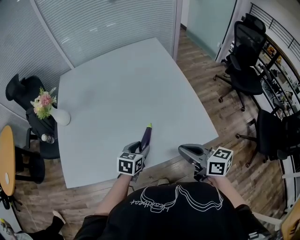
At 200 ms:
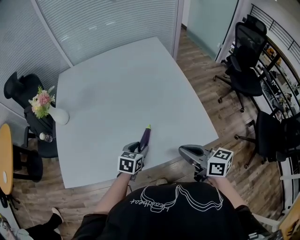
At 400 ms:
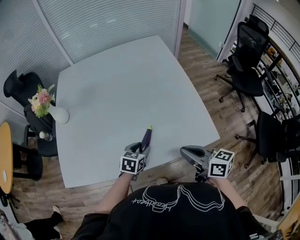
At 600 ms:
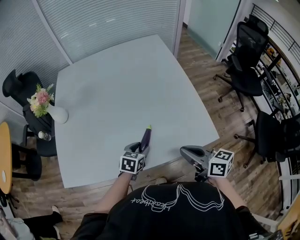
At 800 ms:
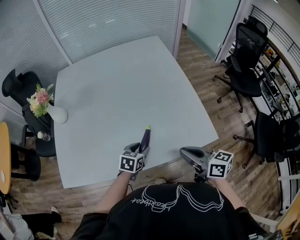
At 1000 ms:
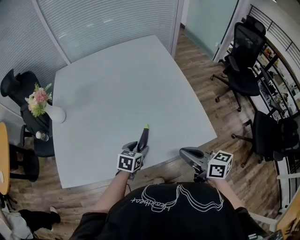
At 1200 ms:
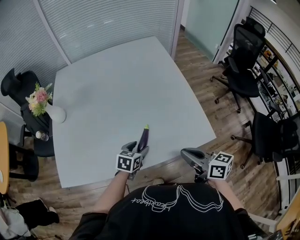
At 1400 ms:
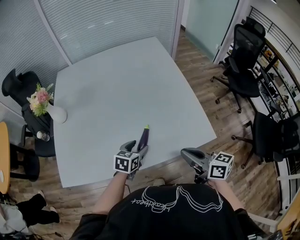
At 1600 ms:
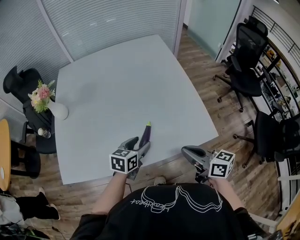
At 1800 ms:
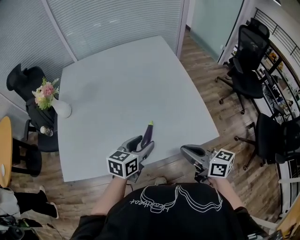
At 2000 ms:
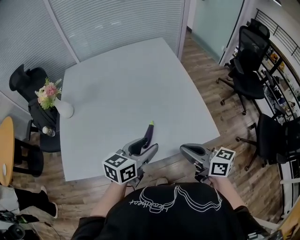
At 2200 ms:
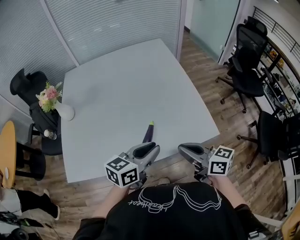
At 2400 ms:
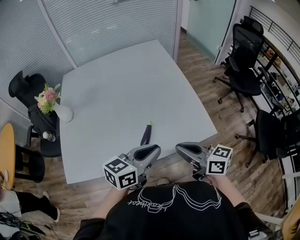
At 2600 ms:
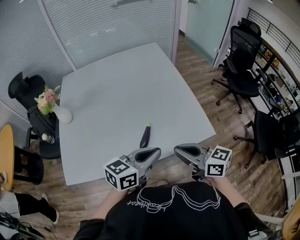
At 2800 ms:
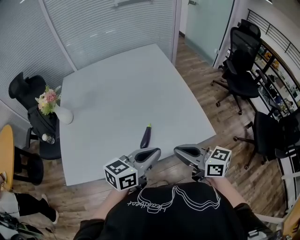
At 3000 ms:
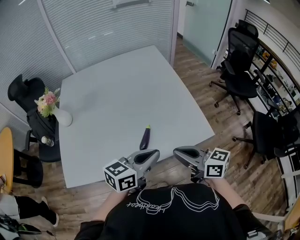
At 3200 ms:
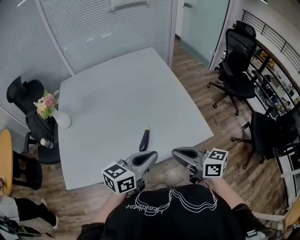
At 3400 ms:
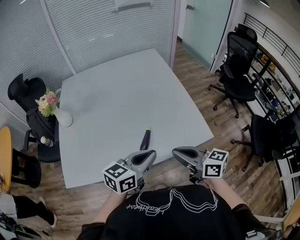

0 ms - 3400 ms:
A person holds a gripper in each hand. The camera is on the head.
0 ms - 1600 ms: There are only small adjustments of the grippers.
1600 ms - 3400 ms: The left gripper goes about 20 cm upward and backward, swivels roughly 20 degrees, and closes its fingers; the right gripper goes about 5 cm upward.

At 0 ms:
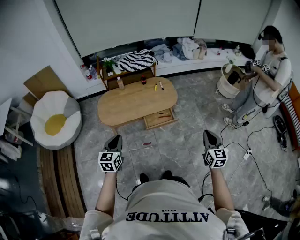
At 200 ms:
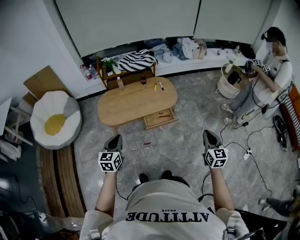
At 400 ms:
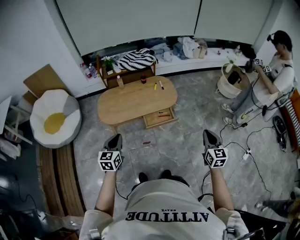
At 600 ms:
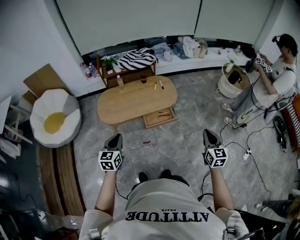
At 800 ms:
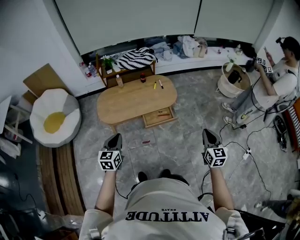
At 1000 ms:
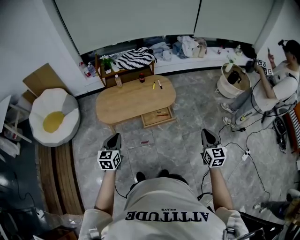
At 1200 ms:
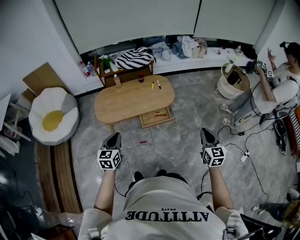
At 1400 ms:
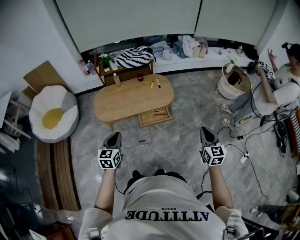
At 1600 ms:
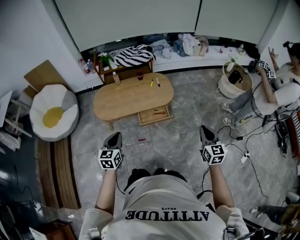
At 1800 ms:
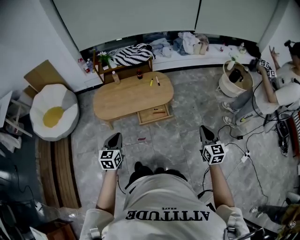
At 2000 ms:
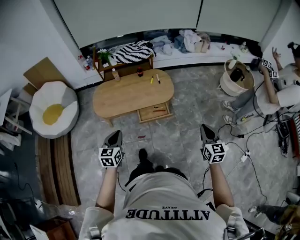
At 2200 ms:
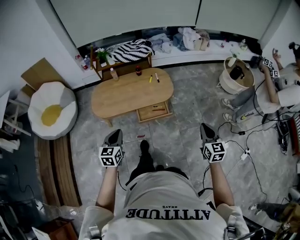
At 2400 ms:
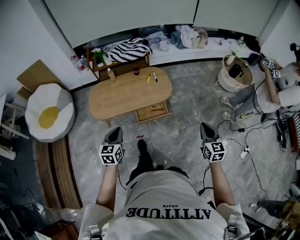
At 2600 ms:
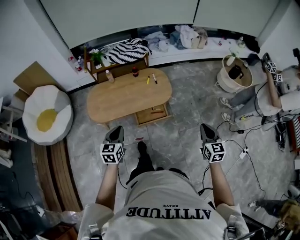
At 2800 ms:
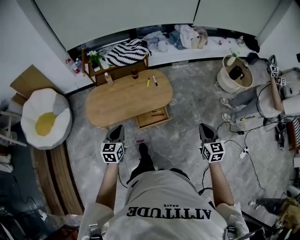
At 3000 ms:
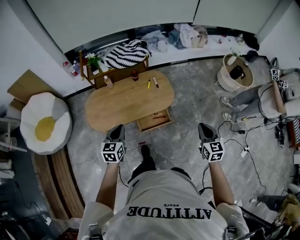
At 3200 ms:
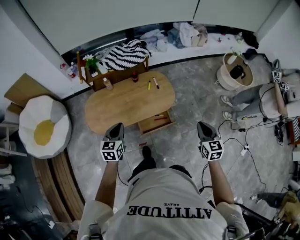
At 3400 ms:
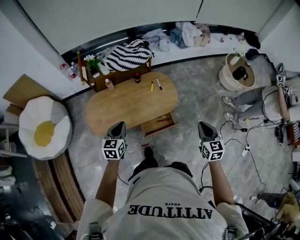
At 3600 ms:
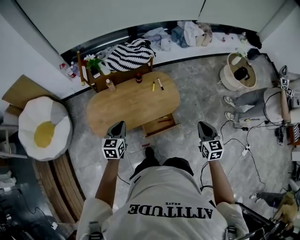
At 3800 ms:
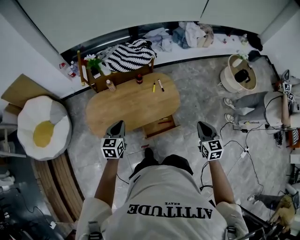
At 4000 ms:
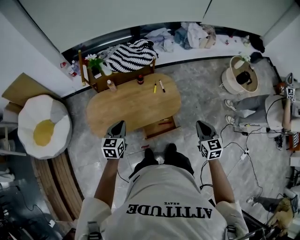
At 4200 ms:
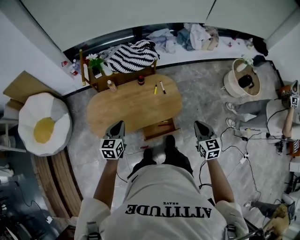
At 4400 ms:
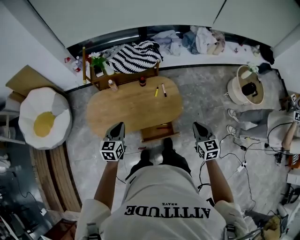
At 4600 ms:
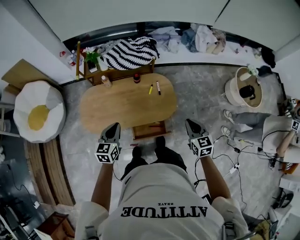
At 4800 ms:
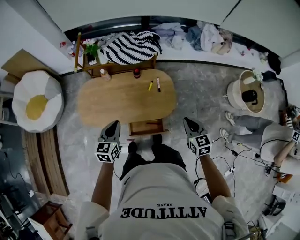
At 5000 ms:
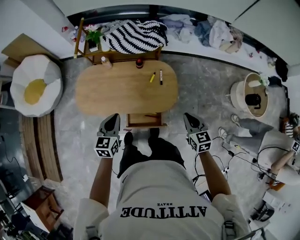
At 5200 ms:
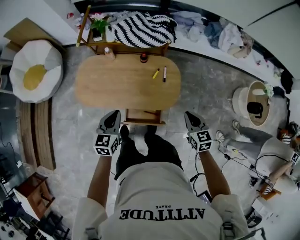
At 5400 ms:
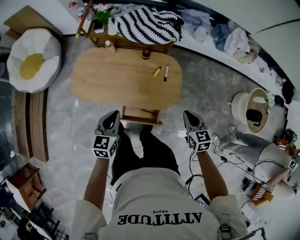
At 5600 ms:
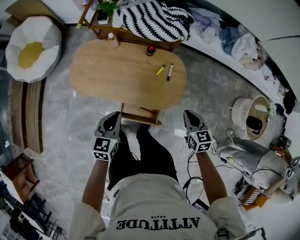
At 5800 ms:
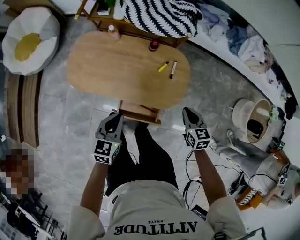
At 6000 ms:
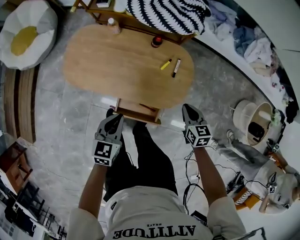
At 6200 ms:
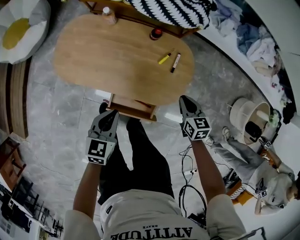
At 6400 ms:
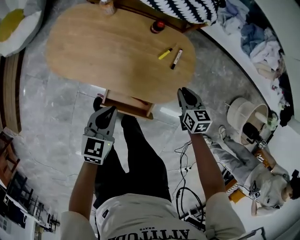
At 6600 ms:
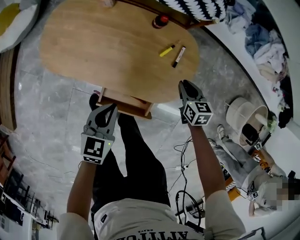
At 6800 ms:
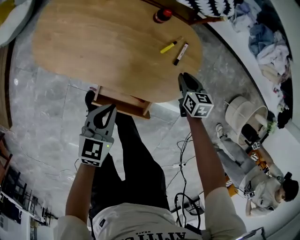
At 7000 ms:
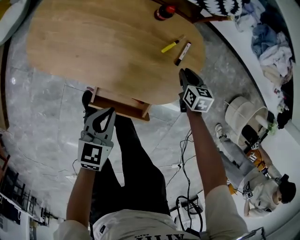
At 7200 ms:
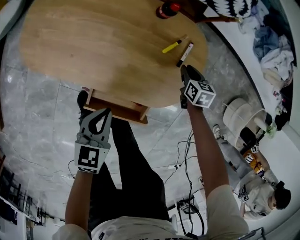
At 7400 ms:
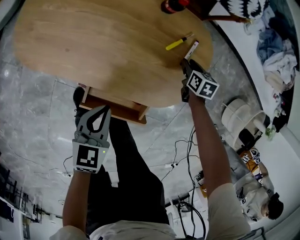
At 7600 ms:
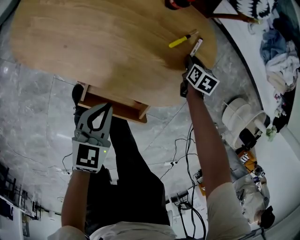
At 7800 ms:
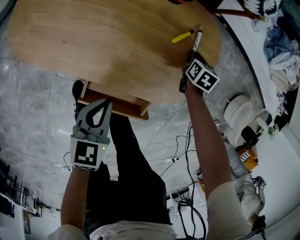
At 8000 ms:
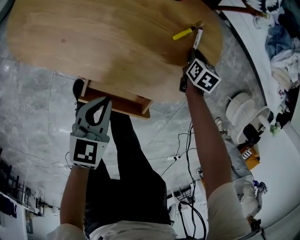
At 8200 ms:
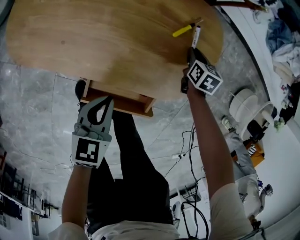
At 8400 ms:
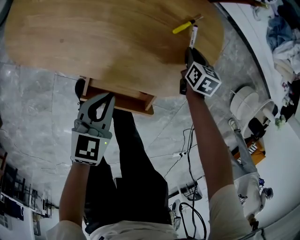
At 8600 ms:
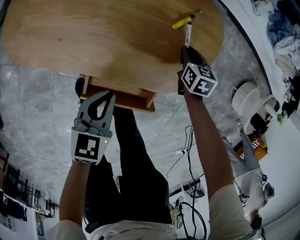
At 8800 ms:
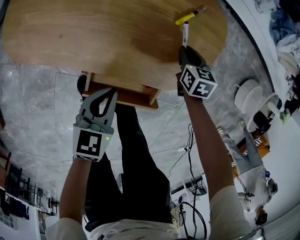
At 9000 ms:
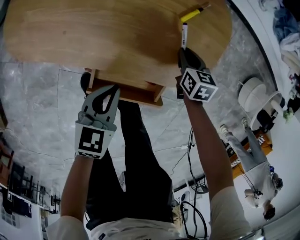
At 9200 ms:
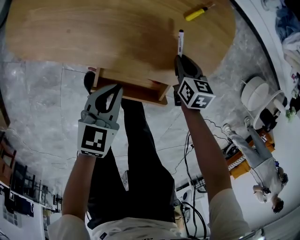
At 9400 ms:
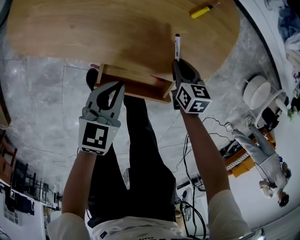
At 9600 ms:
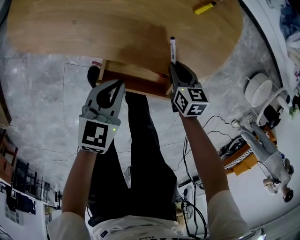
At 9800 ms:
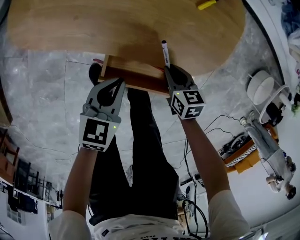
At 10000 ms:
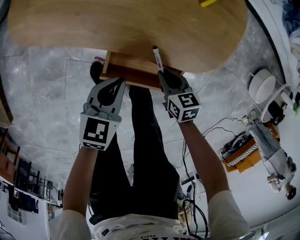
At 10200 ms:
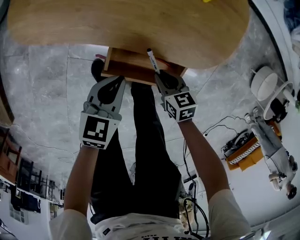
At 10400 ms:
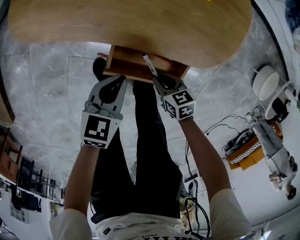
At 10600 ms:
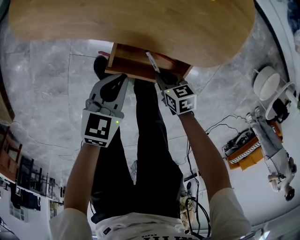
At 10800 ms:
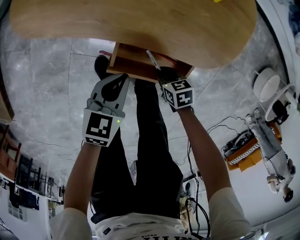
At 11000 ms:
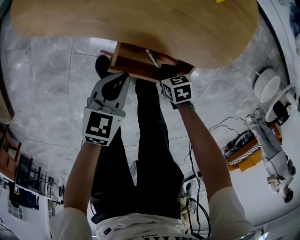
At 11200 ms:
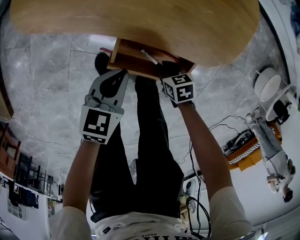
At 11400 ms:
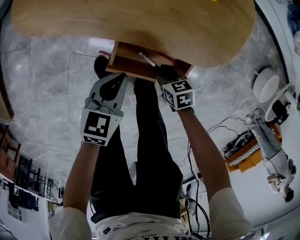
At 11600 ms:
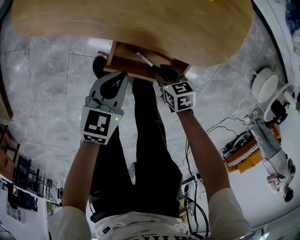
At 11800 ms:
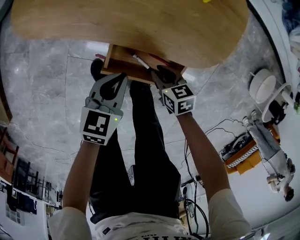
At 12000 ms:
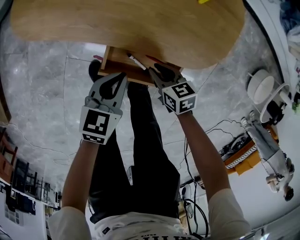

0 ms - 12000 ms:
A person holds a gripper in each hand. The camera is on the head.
0 ms - 1600 ms: The two grippers go some 10 cm to the right.
1600 ms - 3000 ms: The grippers both shift forward by about 20 cm.
3000 ms - 4400 ms: The grippers both shift forward by about 20 cm.
4400 ms - 6000 ms: The right gripper shifts roughly 35 cm downward and forward, and changes its angle by about 30 degrees. Meanwhile the left gripper heads downward and to the right, covering approximately 20 cm.
6000 ms - 7600 ms: The left gripper heads downward, covering roughly 25 cm; the right gripper heads downward and forward, covering about 40 cm, changes its angle by about 20 degrees, and opens.
7600 ms - 9000 ms: The right gripper is displaced backward and to the left by roughly 15 cm.
9000 ms - 10400 ms: The right gripper is displaced backward and to the left by some 30 cm, and changes its angle by roughly 30 degrees, while the left gripper moves backward and to the left, approximately 10 cm.
10400 ms - 12000 ms: The right gripper reaches roughly 5 cm downward, then returns.

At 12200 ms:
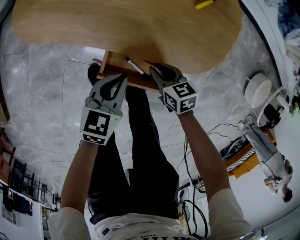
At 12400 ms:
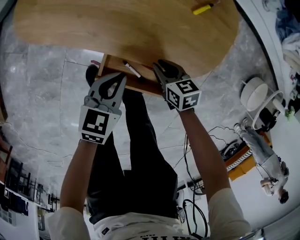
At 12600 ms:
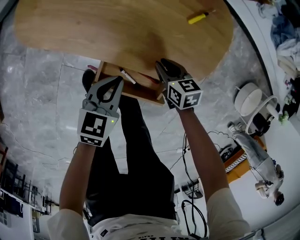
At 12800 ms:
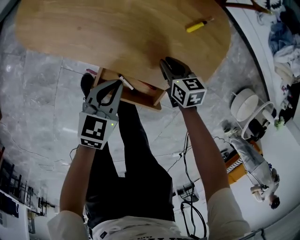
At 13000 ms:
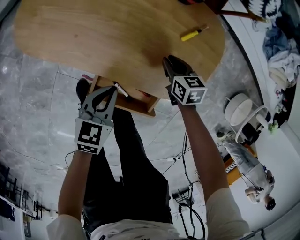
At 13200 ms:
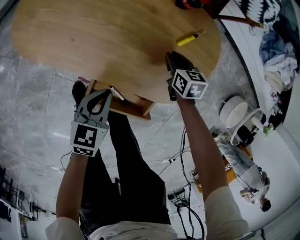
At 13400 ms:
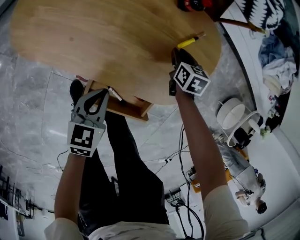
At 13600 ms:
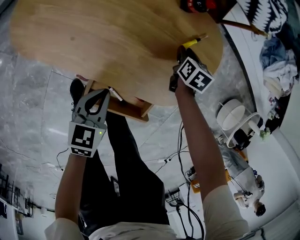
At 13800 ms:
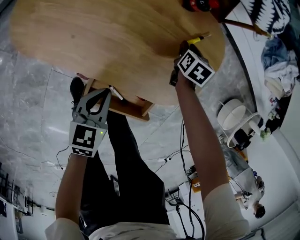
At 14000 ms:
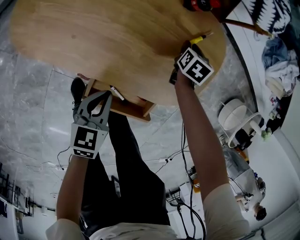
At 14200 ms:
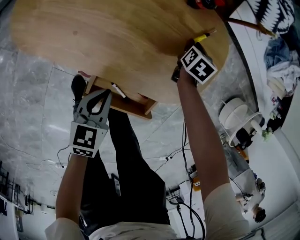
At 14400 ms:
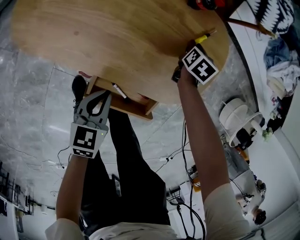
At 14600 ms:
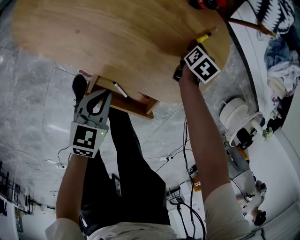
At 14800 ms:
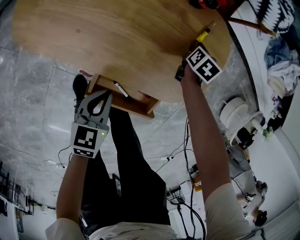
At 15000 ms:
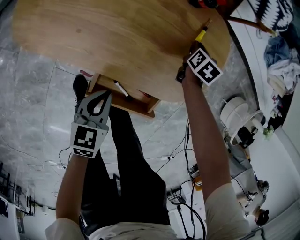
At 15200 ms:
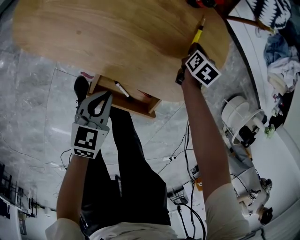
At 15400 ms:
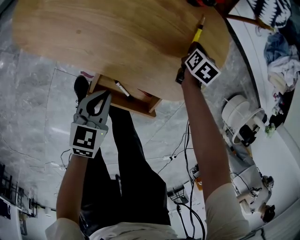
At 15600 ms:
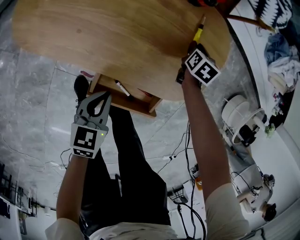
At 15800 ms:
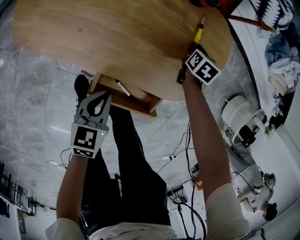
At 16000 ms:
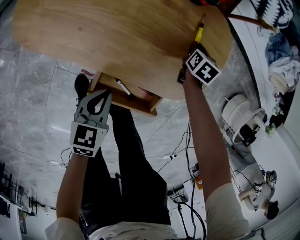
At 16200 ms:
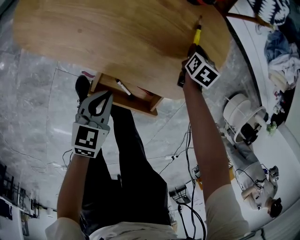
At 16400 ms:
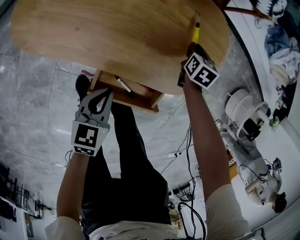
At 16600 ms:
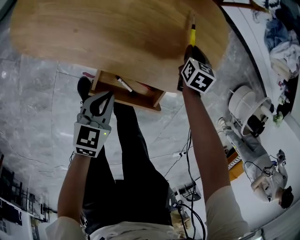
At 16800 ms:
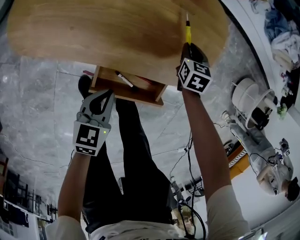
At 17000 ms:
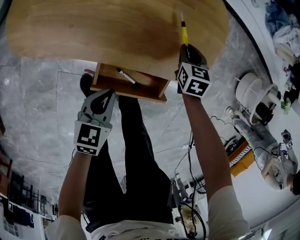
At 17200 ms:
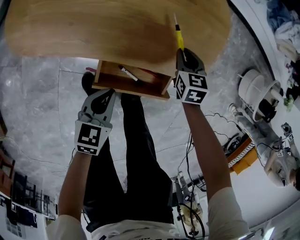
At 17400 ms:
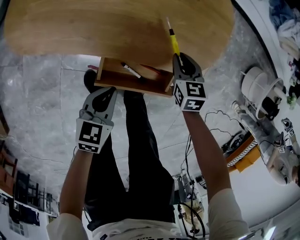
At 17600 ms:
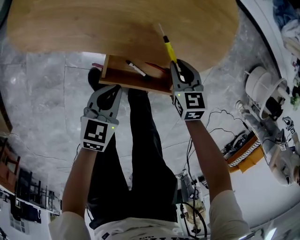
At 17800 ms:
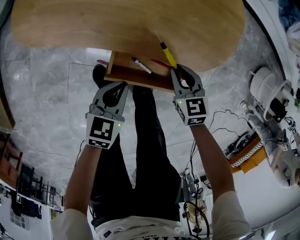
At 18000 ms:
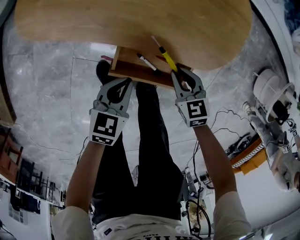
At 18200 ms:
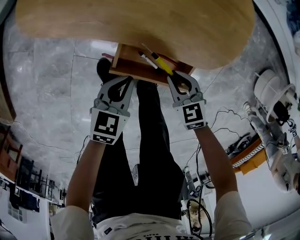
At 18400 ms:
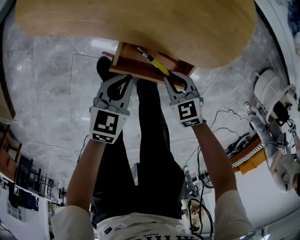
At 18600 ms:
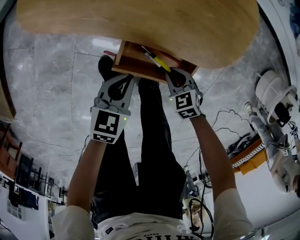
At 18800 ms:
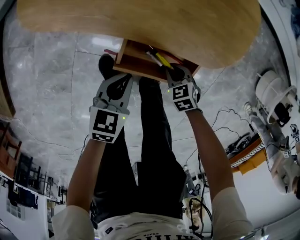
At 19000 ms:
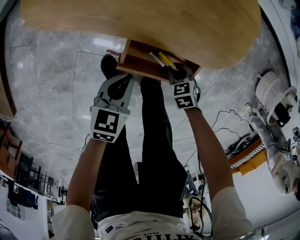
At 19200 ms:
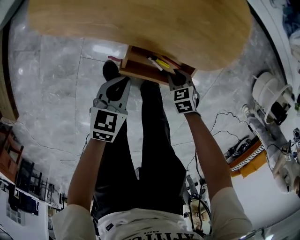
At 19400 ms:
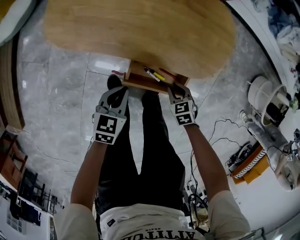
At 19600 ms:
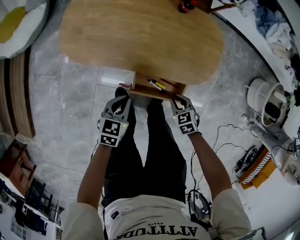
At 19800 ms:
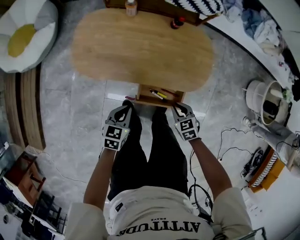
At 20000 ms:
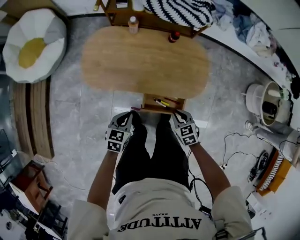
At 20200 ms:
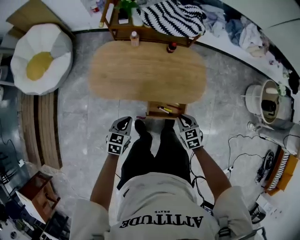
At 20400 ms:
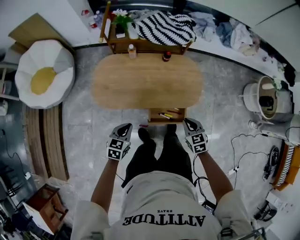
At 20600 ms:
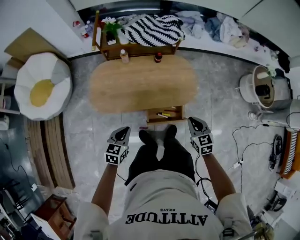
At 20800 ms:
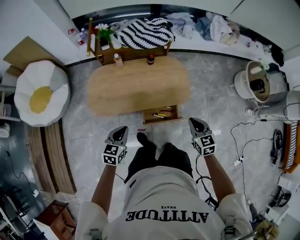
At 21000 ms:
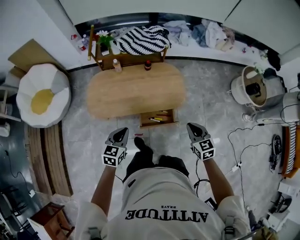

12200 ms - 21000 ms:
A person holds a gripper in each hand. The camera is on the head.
12200 ms - 13600 ms: The right gripper shifts approximately 30 cm forward and to the right, and changes its angle by approximately 30 degrees. The left gripper travels forward by some 10 cm.
13600 ms - 15200 ms: The right gripper closes up.
15200 ms - 16600 ms: The right gripper heads backward, covering some 5 cm.
16600 ms - 18000 ms: The right gripper travels backward by some 25 cm, and rotates roughly 30 degrees; the left gripper moves backward, some 5 cm.
18000 ms - 19600 ms: The right gripper travels upward by some 10 cm, while the left gripper shifts about 15 cm upward and to the left.
19600 ms - 21000 ms: The grippers both shift upward by approximately 35 cm. The right gripper swivels some 40 degrees.
